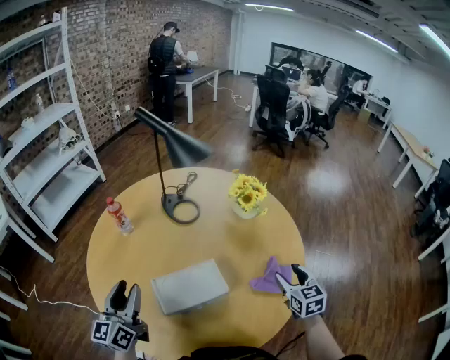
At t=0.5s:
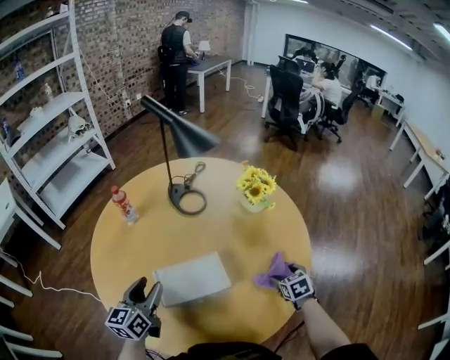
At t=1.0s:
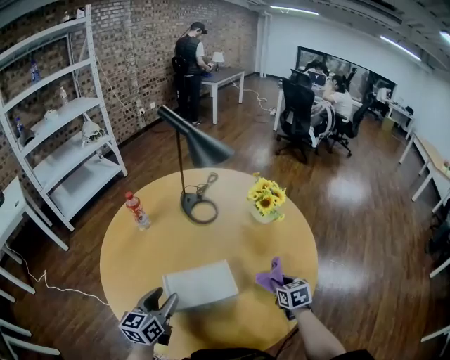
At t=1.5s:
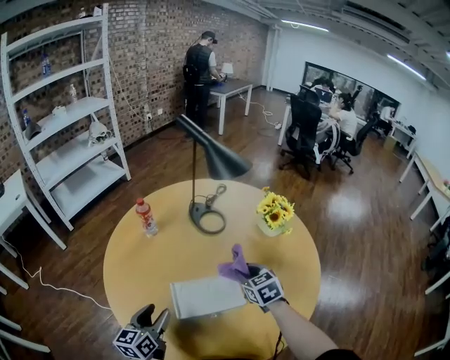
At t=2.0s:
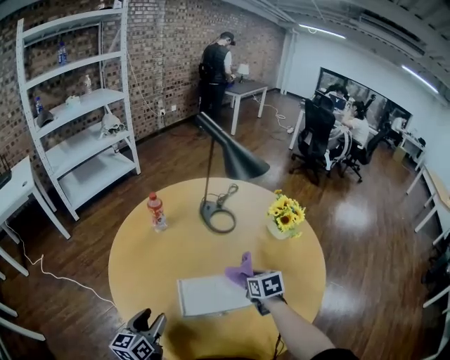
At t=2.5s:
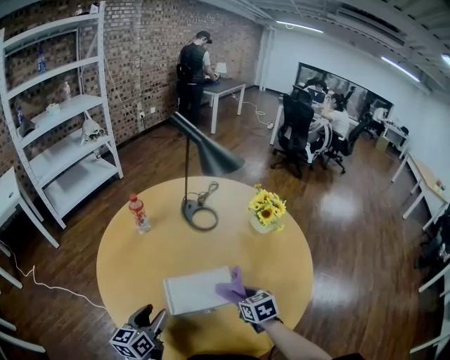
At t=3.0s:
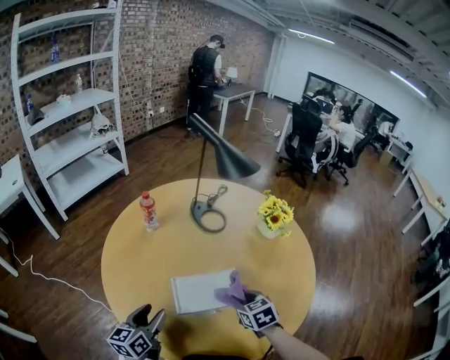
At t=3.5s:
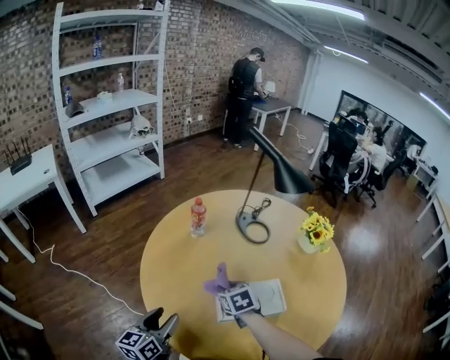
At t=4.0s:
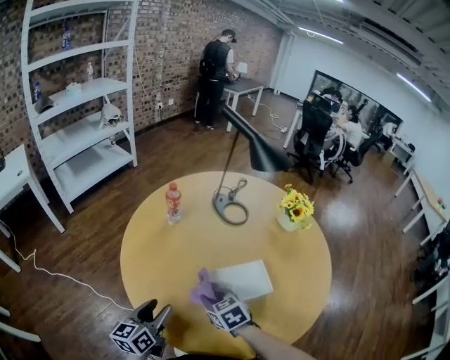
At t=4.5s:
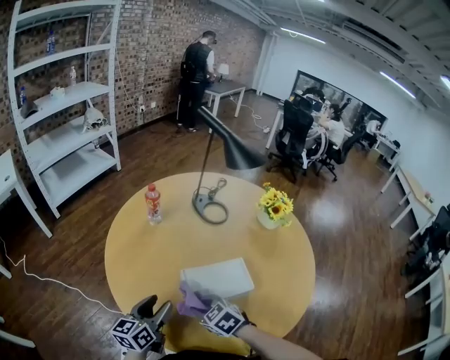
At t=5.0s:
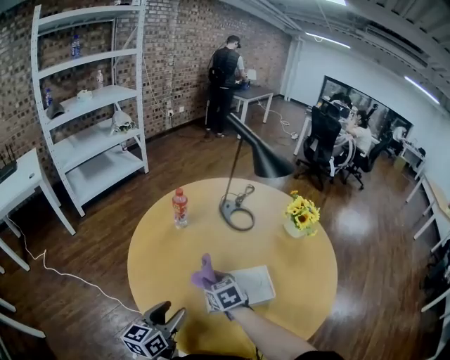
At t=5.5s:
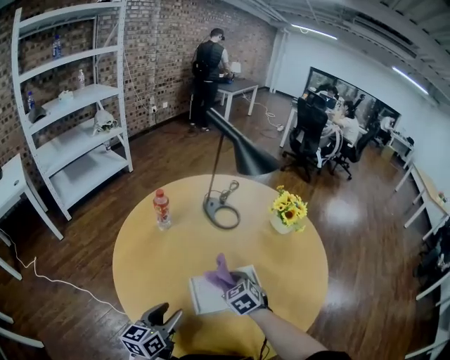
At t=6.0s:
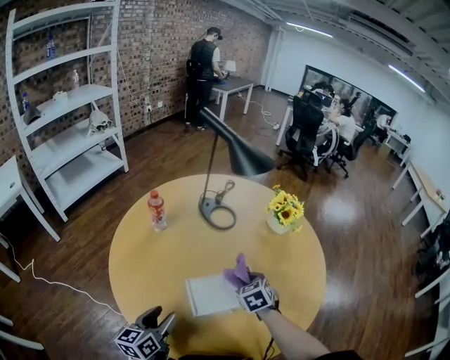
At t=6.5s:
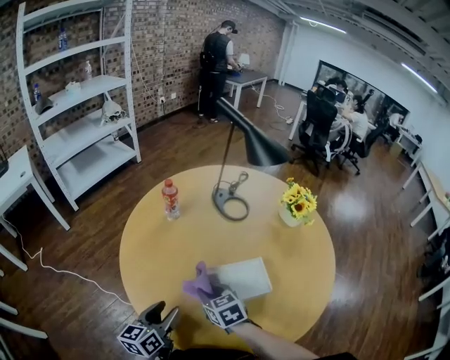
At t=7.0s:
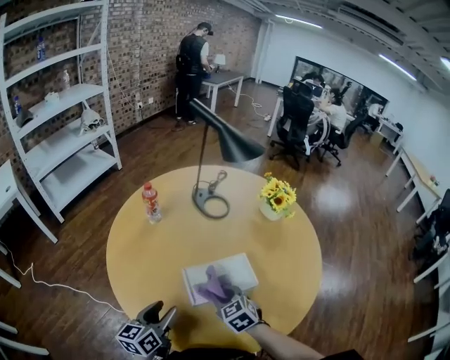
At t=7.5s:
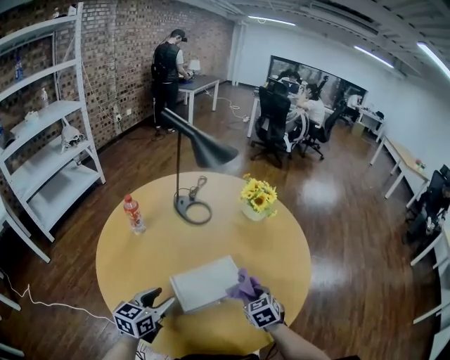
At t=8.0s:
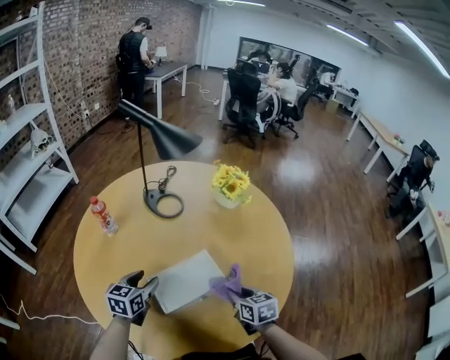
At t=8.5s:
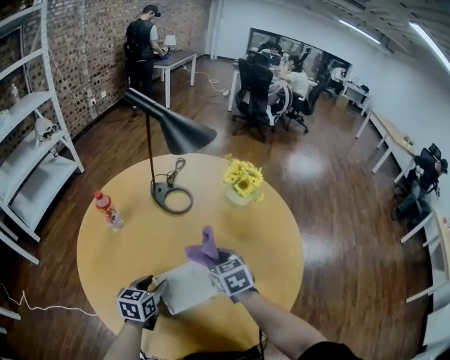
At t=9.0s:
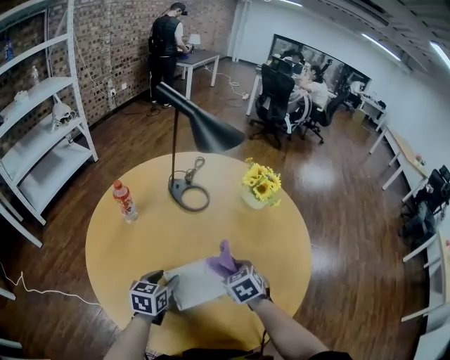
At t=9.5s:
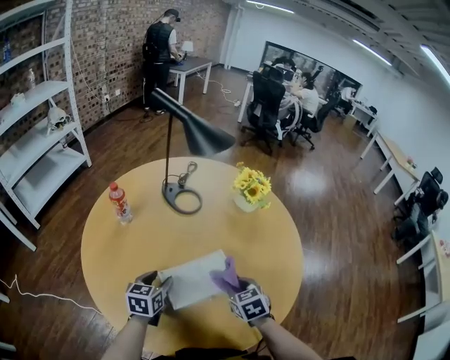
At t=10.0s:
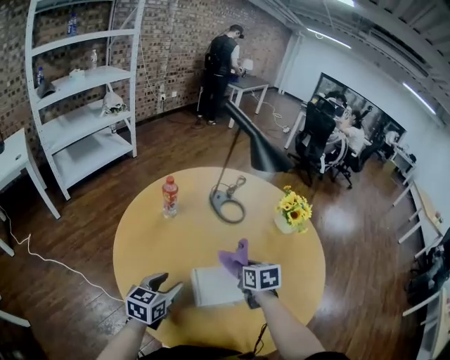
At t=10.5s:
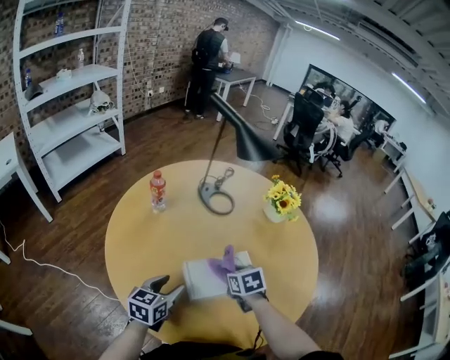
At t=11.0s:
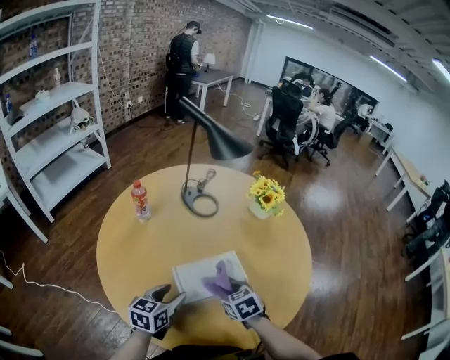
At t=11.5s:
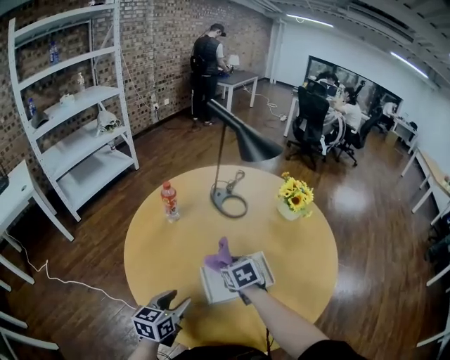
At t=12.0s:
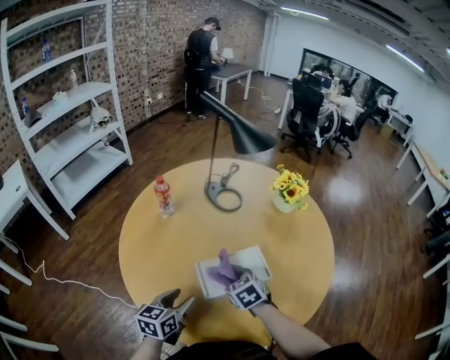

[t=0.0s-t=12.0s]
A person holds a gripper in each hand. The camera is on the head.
t=0.0s to t=2.0s: The right gripper heads to the left and forward, covering about 25 cm, rotates roughly 30 degrees, and closes its fingers, while the left gripper goes approximately 15 cm downward and backward.
t=2.0s to t=4.0s: The right gripper goes some 25 cm to the left. The left gripper moves to the left, approximately 5 cm.
t=4.0s to t=6.0s: The right gripper shifts about 20 cm to the right and forward, and turns by some 20 degrees. The left gripper is displaced to the right by some 5 cm.
t=6.0s to t=8.0s: The left gripper ends up some 15 cm from where it was, and rotates about 30 degrees; the right gripper moves approximately 15 cm, and turns by roughly 40 degrees.
t=8.0s to t=10.0s: The left gripper moves backward and to the left, about 10 cm, while the right gripper goes left and right, roughly 15 cm each way, reversing 2 times.
t=10.0s to t=12.0s: The left gripper travels backward by roughly 5 cm. The right gripper swings forward and backward, roughly 10 cm each way, with 2 reversals.

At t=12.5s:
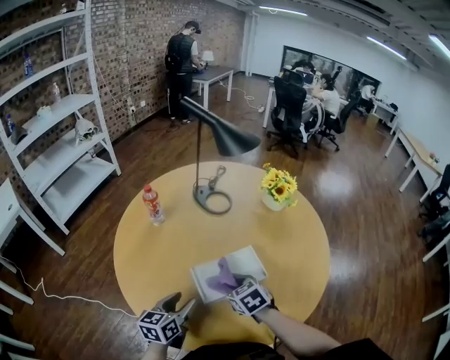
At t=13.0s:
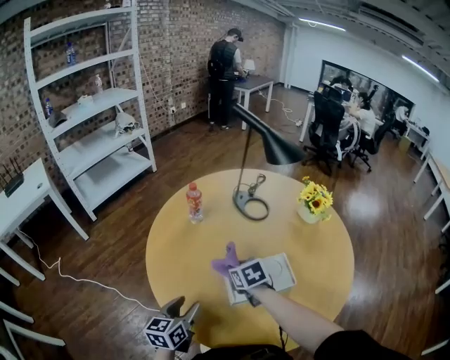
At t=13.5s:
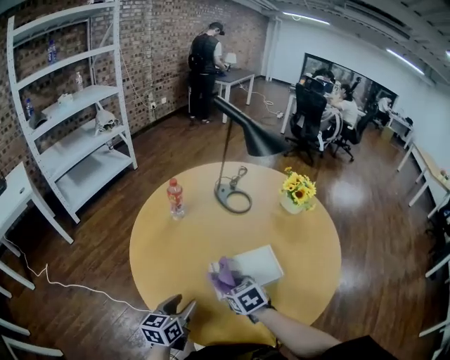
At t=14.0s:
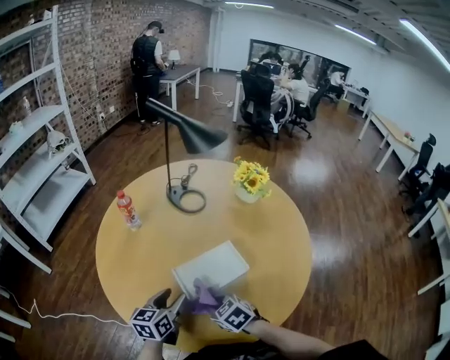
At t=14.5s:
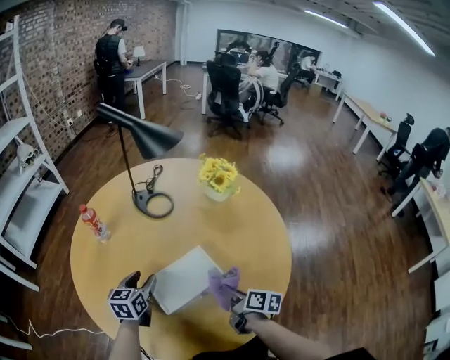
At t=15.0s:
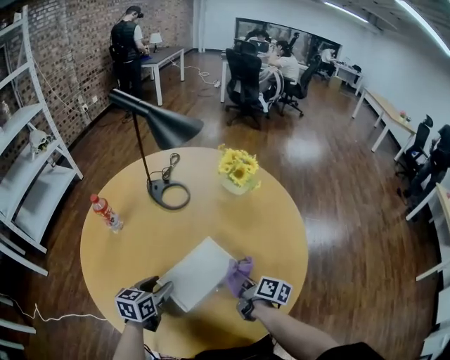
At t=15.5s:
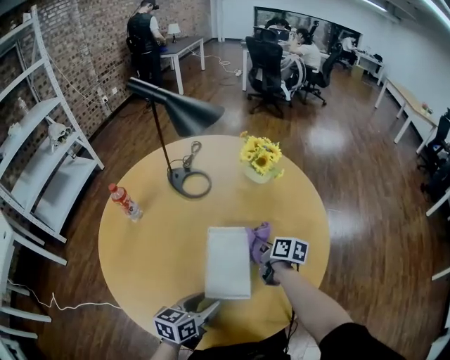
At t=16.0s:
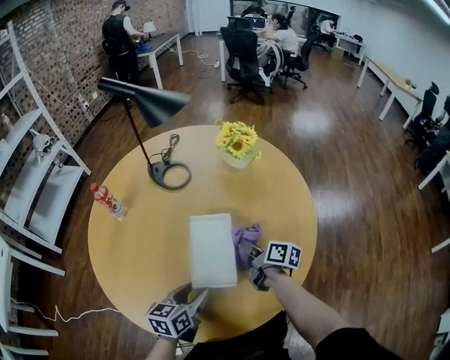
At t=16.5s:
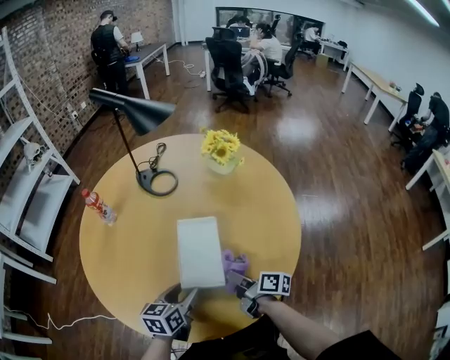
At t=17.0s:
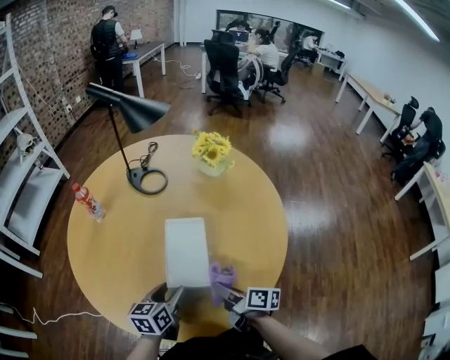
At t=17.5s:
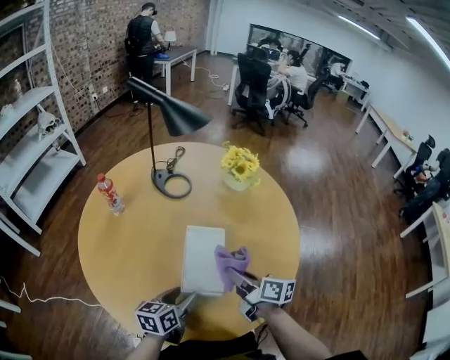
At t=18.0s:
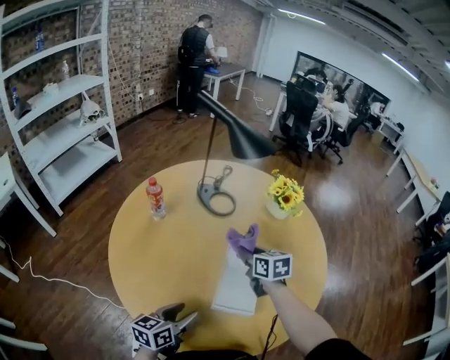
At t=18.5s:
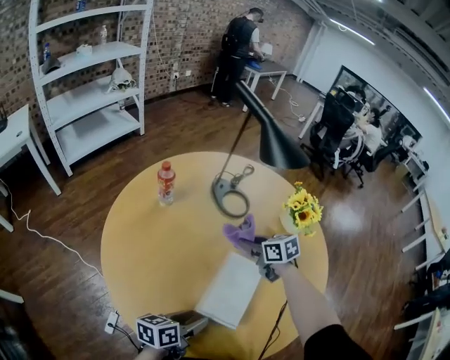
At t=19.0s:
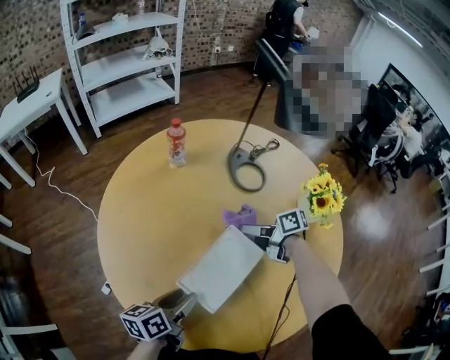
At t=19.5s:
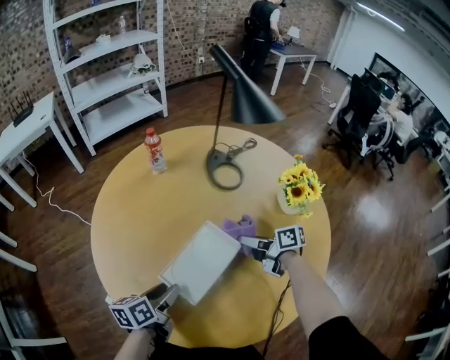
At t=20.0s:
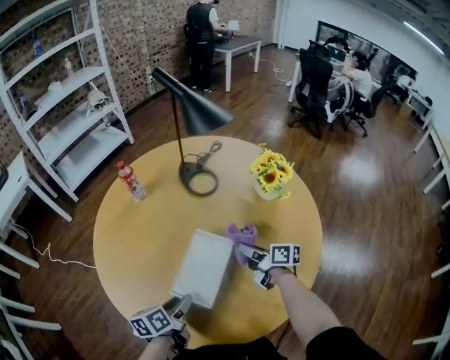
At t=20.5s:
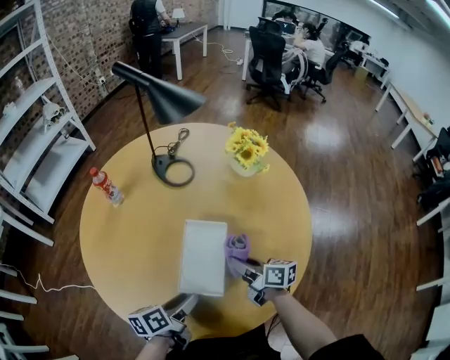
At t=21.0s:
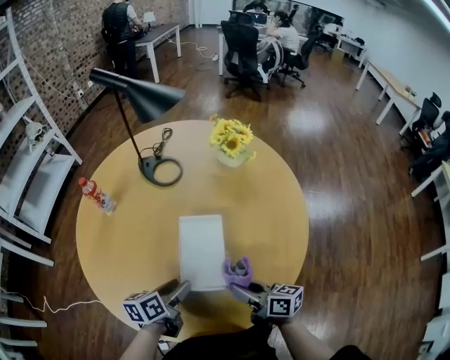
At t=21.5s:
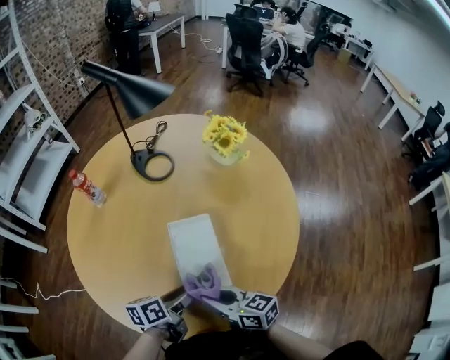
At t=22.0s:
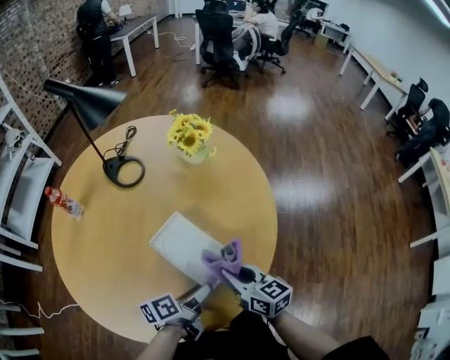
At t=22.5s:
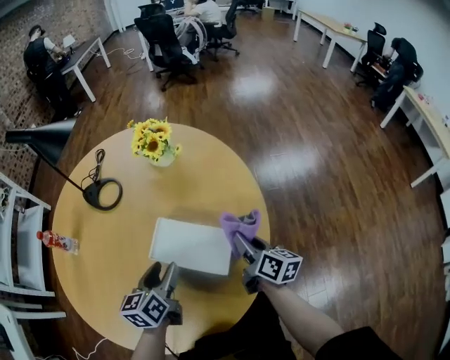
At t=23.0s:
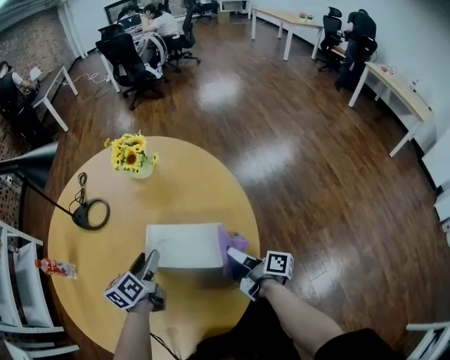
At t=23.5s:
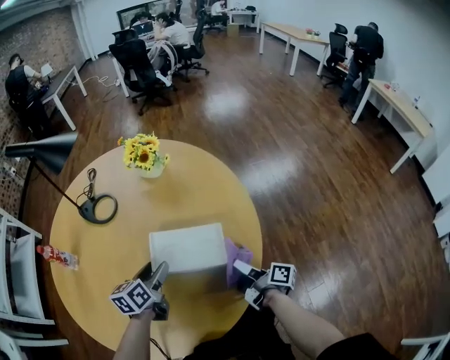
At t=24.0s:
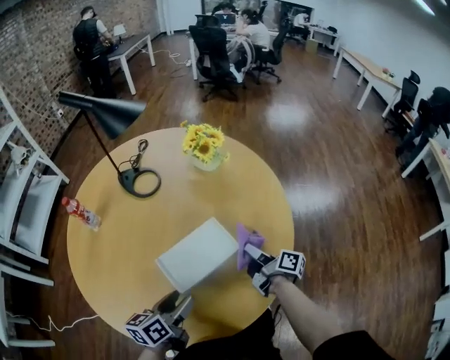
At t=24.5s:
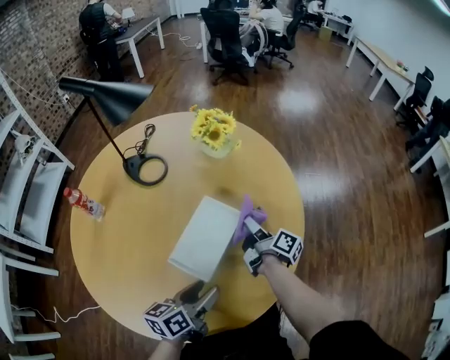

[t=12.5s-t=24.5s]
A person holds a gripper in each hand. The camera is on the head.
t=12.5s to t=14.5s: The right gripper travels to the right by some 15 cm, and twists about 70 degrees clockwise, seen from behind; the left gripper moves forward, approximately 15 cm.
t=14.5s to t=16.5s: The left gripper goes about 15 cm backward and to the right. Meanwhile the right gripper travels forward and back again, about 15 cm each way.
t=16.5s to t=18.5s: The right gripper is displaced forward by roughly 25 cm, and twists some 60 degrees counterclockwise, seen from behind. The left gripper travels to the left and back again, about 10 cm each way, and swivels about 30 degrees.
t=18.5s to t=20.5s: The right gripper shifts by some 20 cm, and turns by about 50 degrees.
t=20.5s to t=22.5s: The left gripper ends up about 15 cm from where it was, and rotates some 40 degrees. Meanwhile the right gripper shifts by about 20 cm, and rotates approximately 50 degrees.
t=22.5s to t=24.5s: The left gripper goes approximately 10 cm backward, and rotates roughly 20 degrees; the right gripper travels to the left and forward by some 10 cm, and rotates approximately 30 degrees.

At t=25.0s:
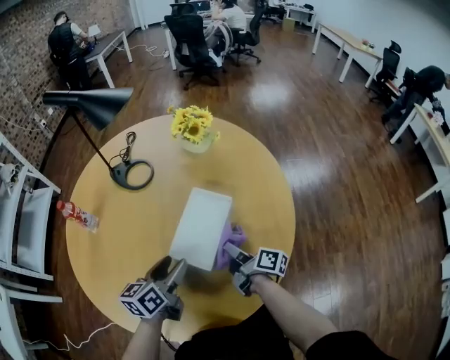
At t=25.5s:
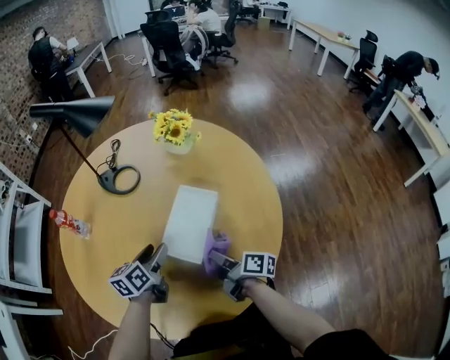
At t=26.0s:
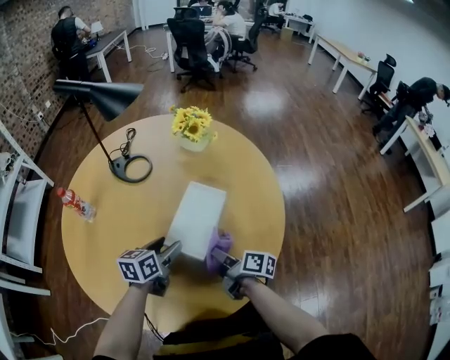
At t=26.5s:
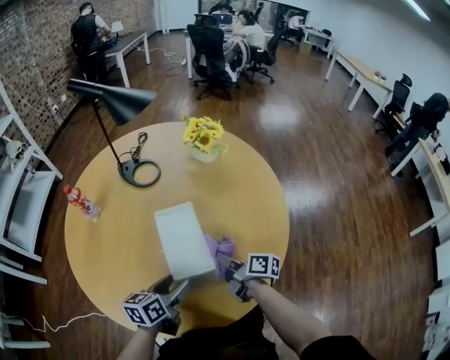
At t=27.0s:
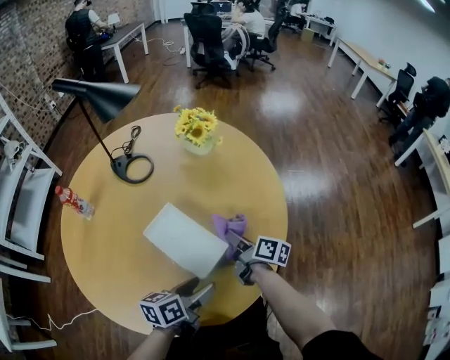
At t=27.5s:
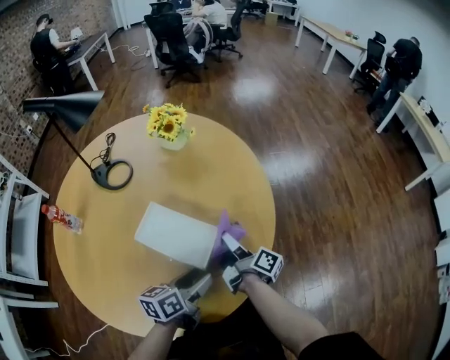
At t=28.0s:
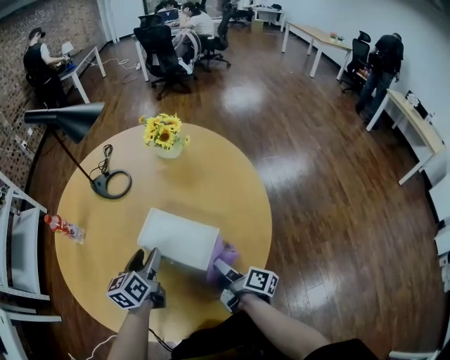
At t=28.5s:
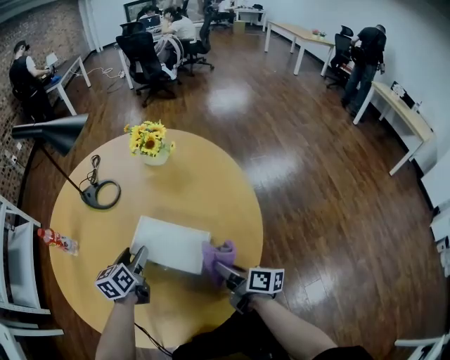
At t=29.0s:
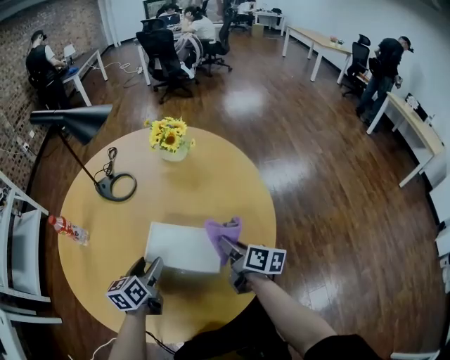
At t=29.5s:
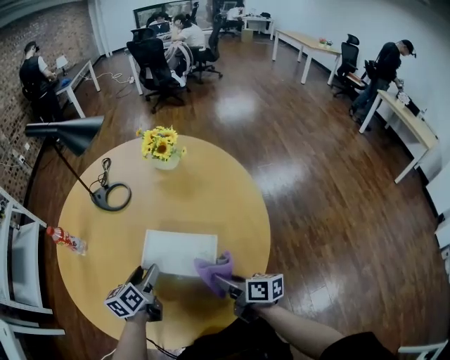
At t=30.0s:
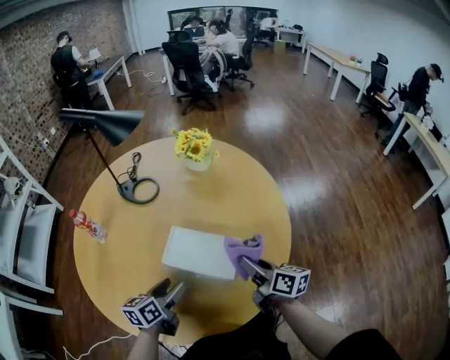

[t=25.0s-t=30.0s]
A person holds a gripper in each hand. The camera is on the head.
t=25.0s to t=27.5s: The right gripper ends up some 5 cm from where it was, and turns by roughly 20 degrees; the left gripper changes place by some 15 cm, and swivels some 20 degrees.
t=27.5s to t=30.0s: The left gripper shifts approximately 15 cm to the left. Meanwhile the right gripper swings forward and backward, approximately 10 cm each way, with 3 reversals, and rotates approximately 40 degrees.
